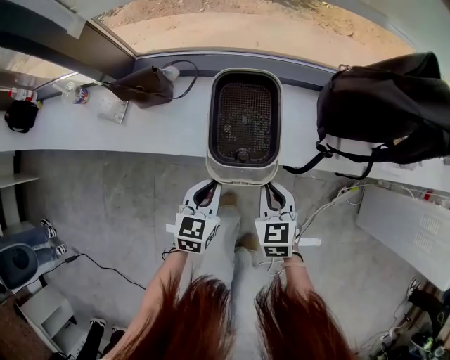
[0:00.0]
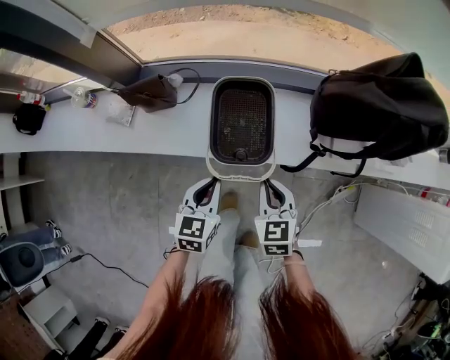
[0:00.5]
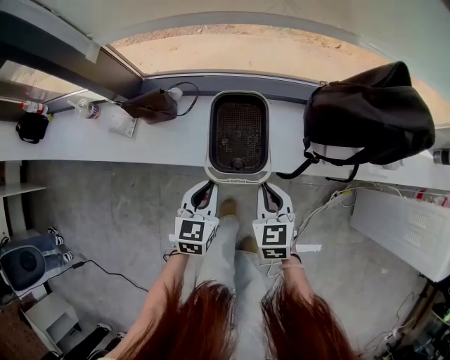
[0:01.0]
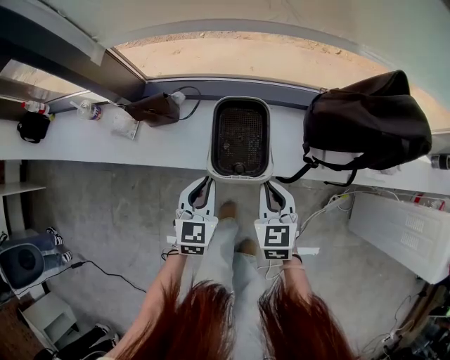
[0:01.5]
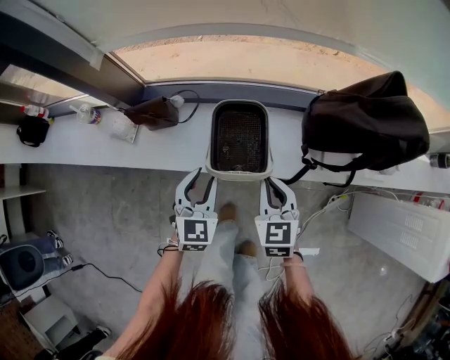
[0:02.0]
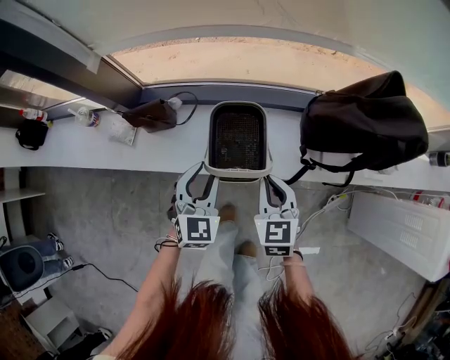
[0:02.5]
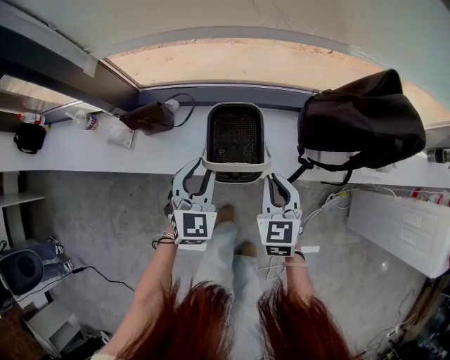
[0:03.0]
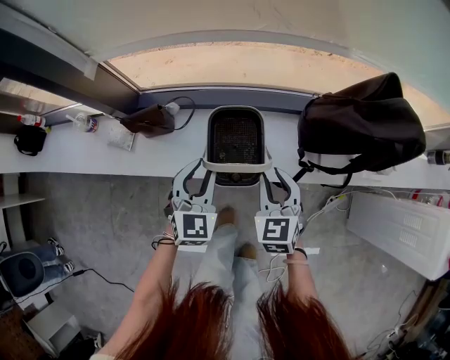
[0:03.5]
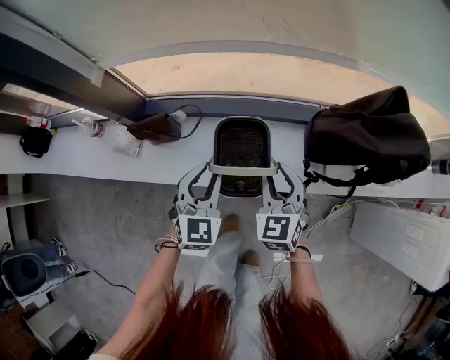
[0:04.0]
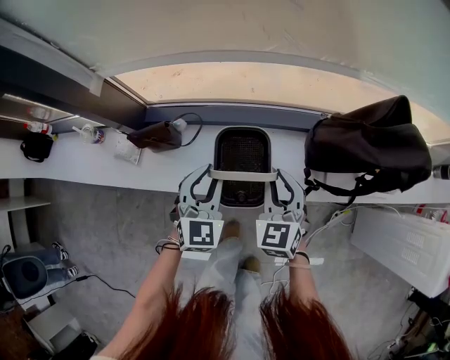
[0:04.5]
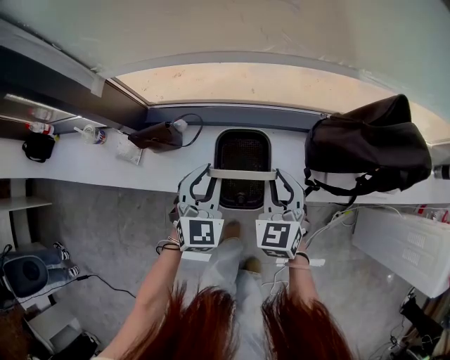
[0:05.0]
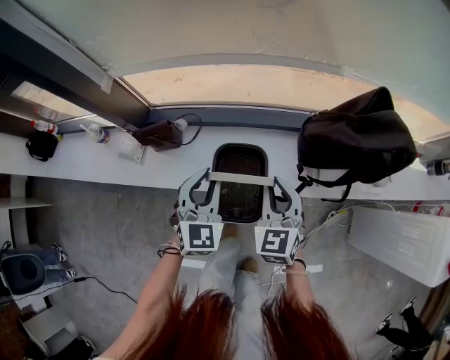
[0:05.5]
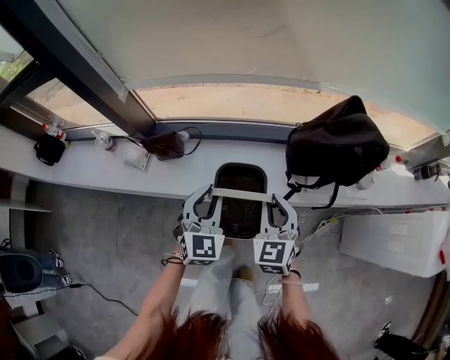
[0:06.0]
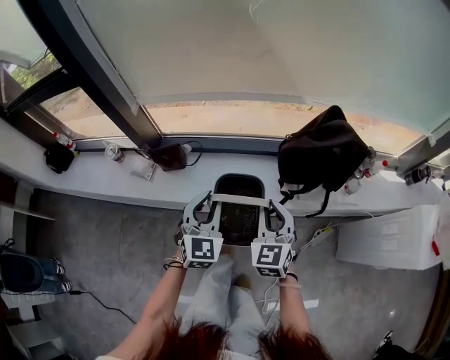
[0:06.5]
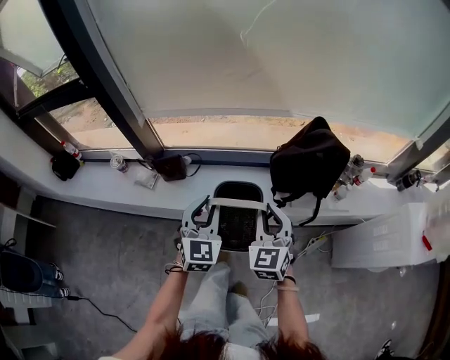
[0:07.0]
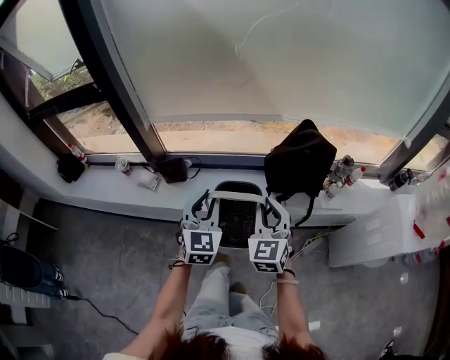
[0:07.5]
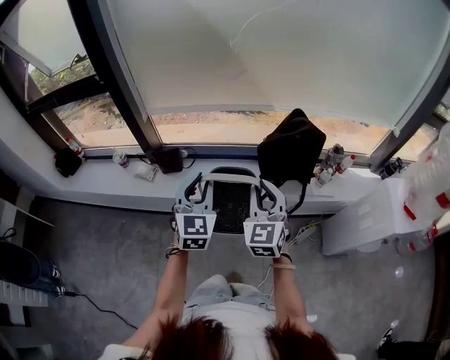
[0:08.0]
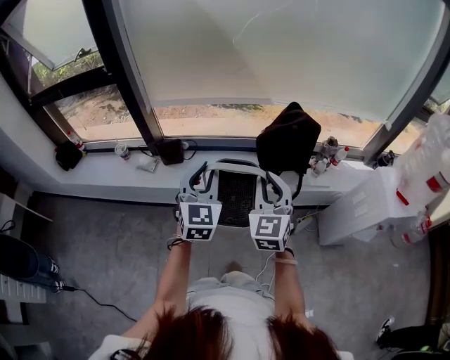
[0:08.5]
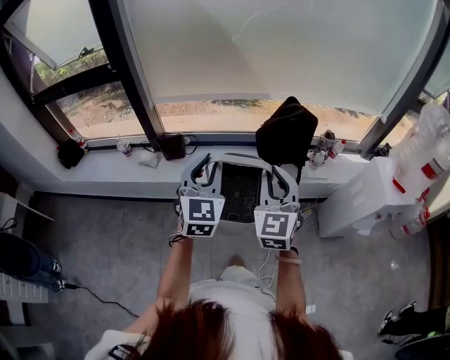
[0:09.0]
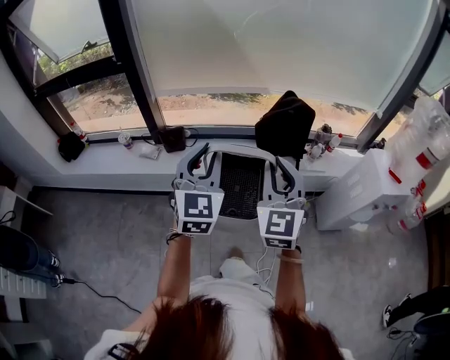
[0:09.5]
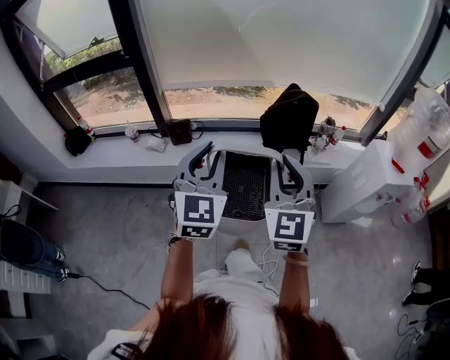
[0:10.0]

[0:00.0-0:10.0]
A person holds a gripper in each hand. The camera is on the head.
0:00.0 to 0:02.0: The two grippers go some 15 cm upward and forward. The left gripper turns by roughly 20 degrees, and opens.
0:02.0 to 0:04.0: Both grippers travel together forward, about 5 cm. The right gripper opens its fingers.
0:04.0 to 0:06.0: The left gripper moves upward and backward, about 15 cm. The right gripper heads backward and upward, covering approximately 15 cm.
0:06.0 to 0:08.0: The grippers both shift upward and backward by some 25 cm.
0:08.0 to 0:10.0: The grippers both shift backward and upward by roughly 25 cm.

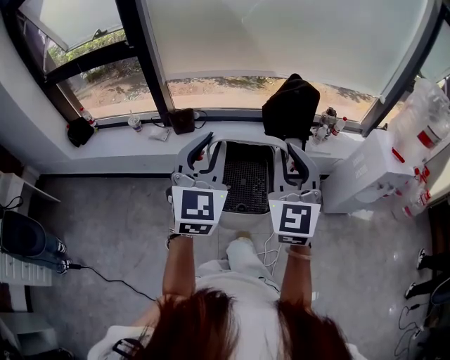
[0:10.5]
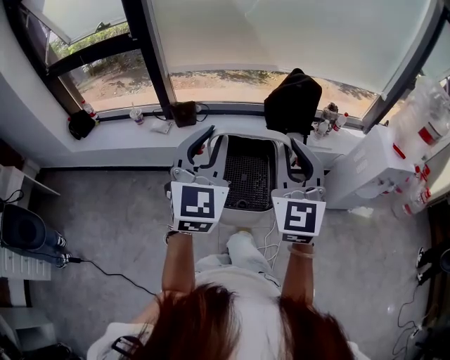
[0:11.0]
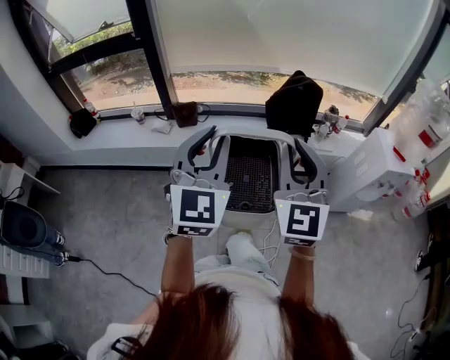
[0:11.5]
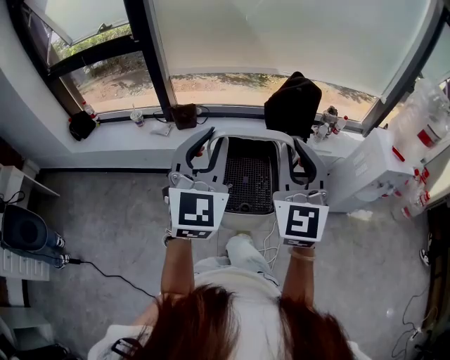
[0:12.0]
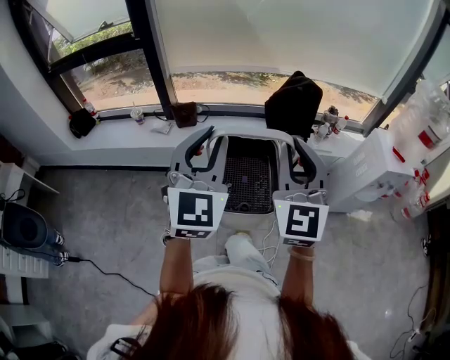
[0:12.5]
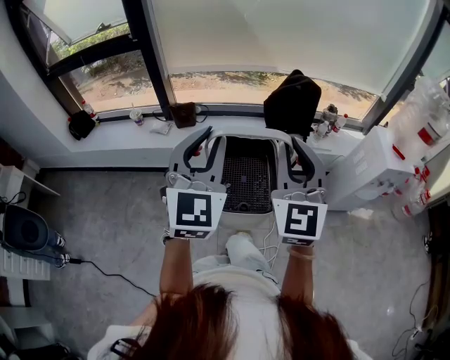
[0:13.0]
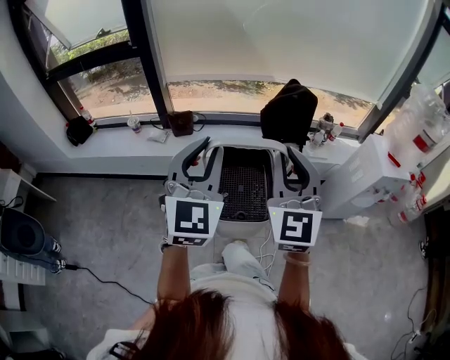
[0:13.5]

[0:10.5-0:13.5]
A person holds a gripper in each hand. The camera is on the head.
0:10.5 to 0:12.0: The grippers move only a little.
0:12.0 to 0:13.5: Both grippers stay put.

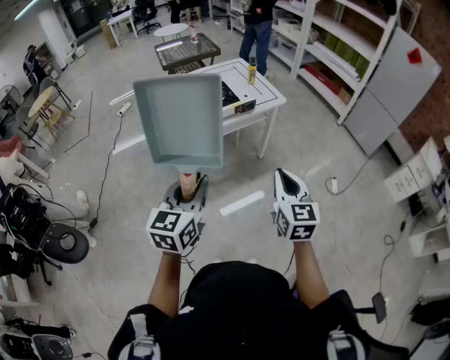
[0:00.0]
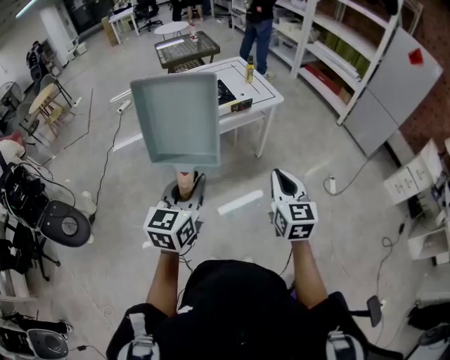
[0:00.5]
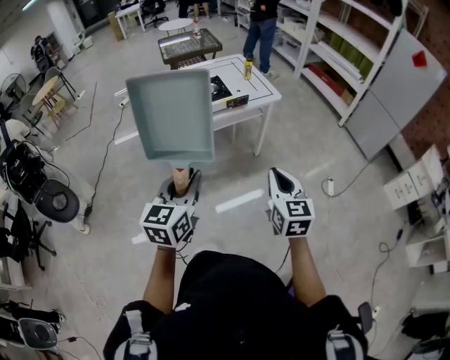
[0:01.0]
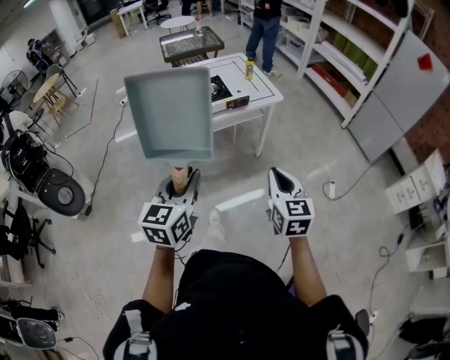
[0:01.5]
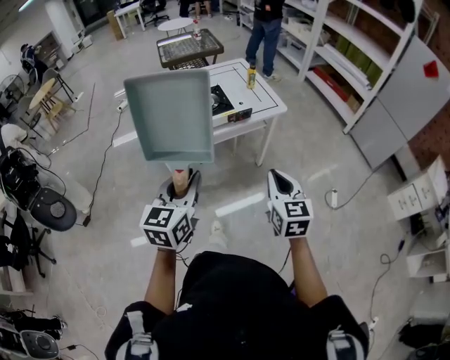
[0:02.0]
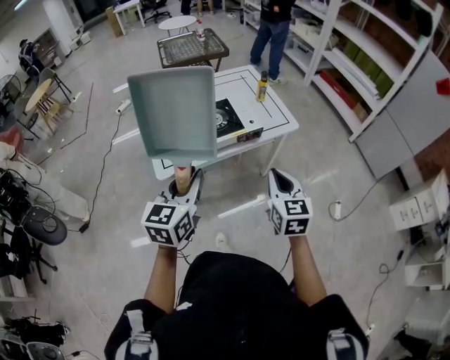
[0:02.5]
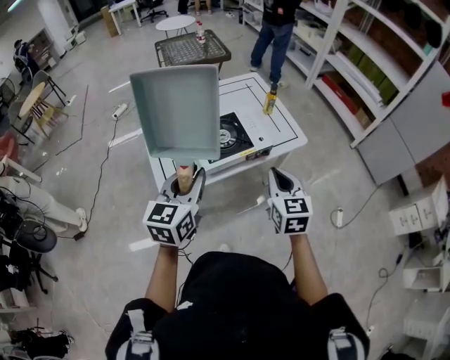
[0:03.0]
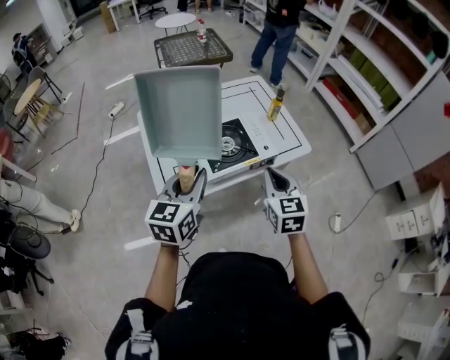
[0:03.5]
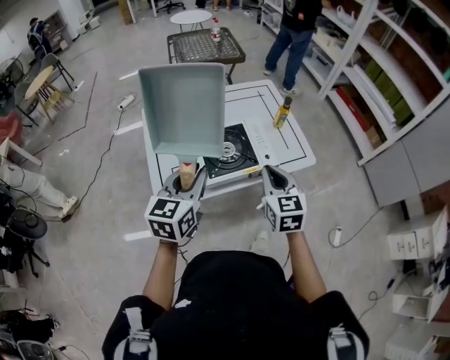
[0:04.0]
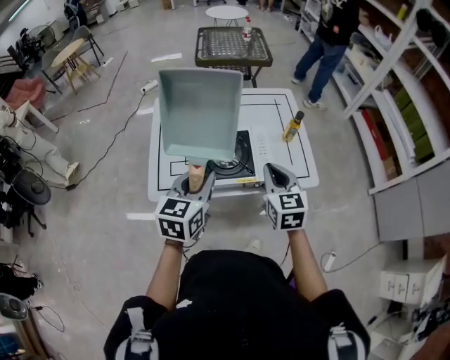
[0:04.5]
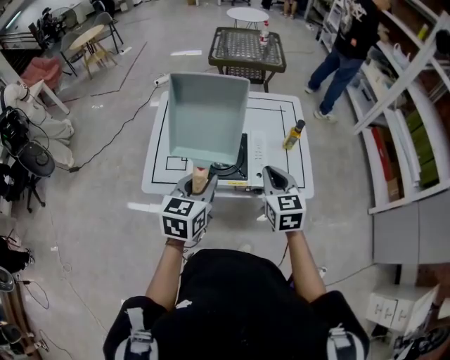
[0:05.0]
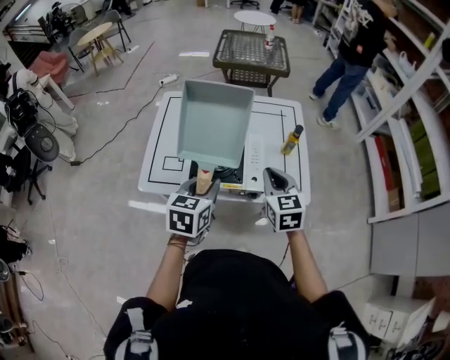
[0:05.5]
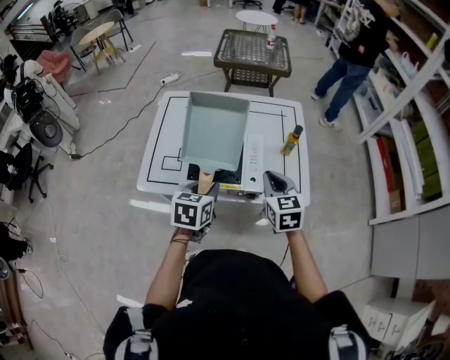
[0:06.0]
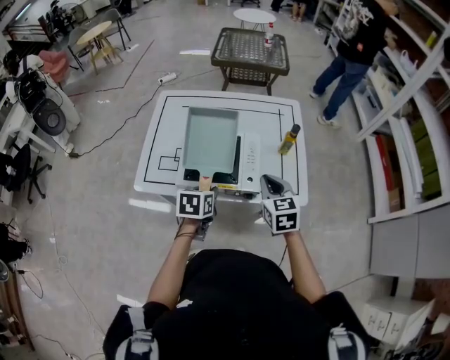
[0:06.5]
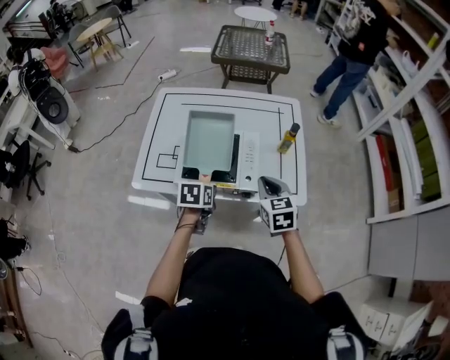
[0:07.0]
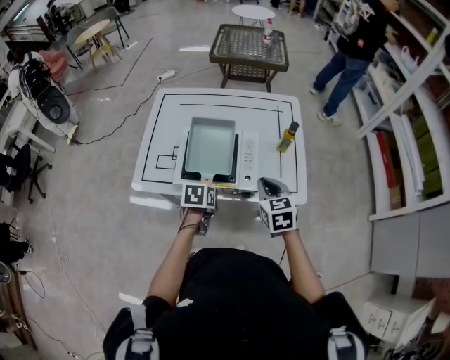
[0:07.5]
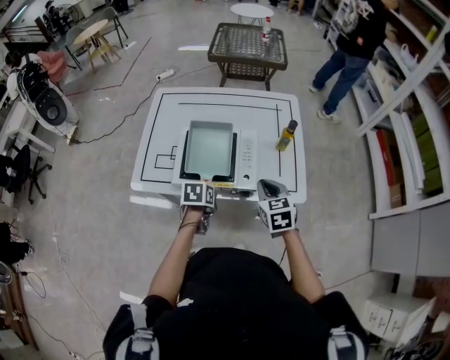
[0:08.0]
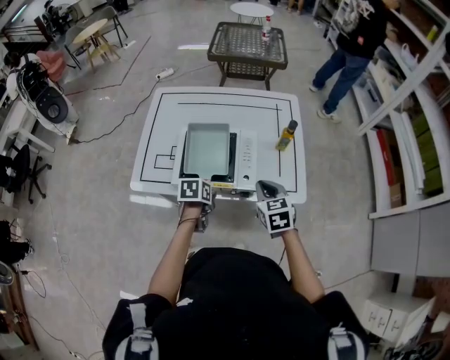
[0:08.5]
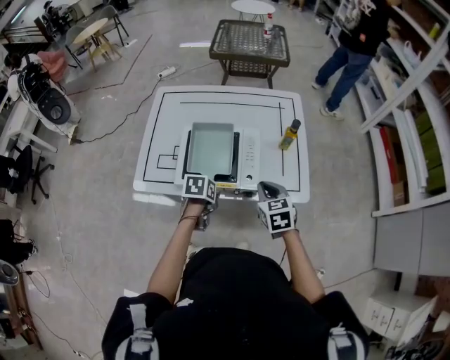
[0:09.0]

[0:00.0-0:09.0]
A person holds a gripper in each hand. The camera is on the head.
0:00.0 to 0:02.0: The two grippers go approximately 10 cm forward.
0:02.0 to 0:04.5: The grippers both shift forward by roughly 40 cm. The right gripper swivels about 20 degrees.
0:04.5 to 0:07.0: The left gripper heads downward, covering roughly 20 cm, and tilts its fingers about 30 degrees downward. Meanwhile the right gripper travels downward and to the right by roughly 10 cm.
0:07.0 to 0:09.0: The grippers stay close to where they were, moving slightly.

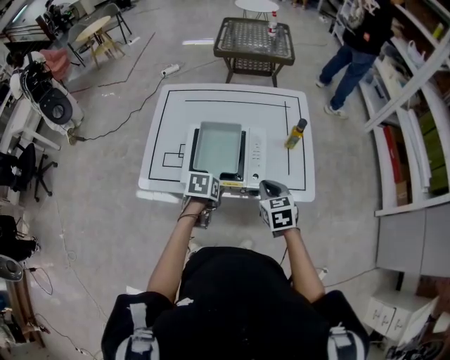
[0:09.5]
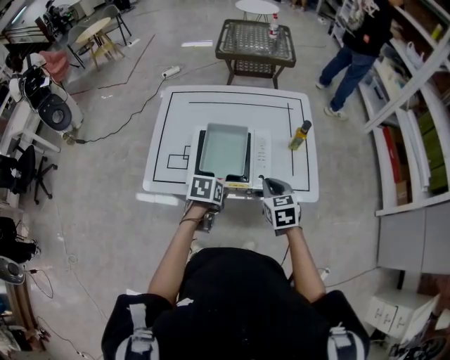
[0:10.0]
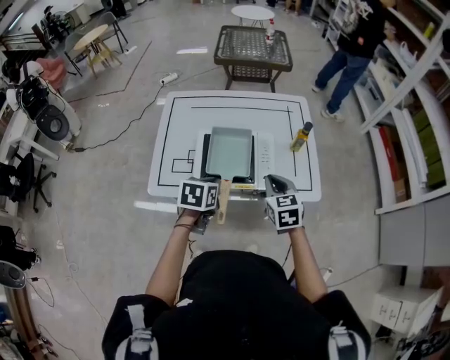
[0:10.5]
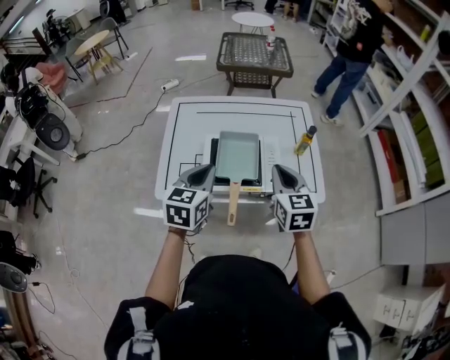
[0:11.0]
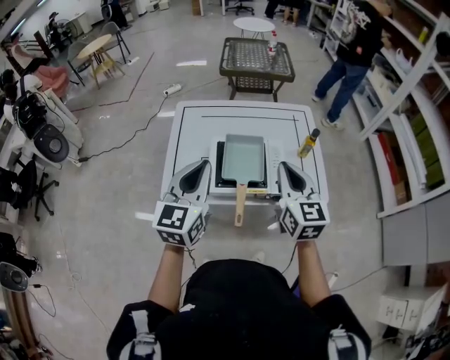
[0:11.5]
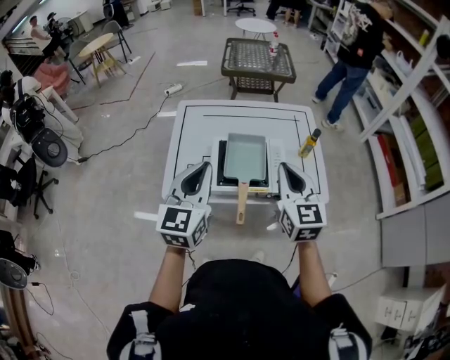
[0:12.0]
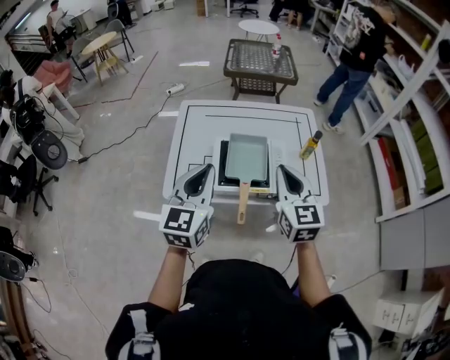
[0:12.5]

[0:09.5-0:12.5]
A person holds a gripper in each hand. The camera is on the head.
0:09.5 to 0:11.0: Both grippers travel together upward, roughly 20 cm. The left gripper angles its fingers upward, by roughly 40 degrees, and closes its fingers. Meanwhile the right gripper swivels roughly 20 degrees.
0:11.0 to 0:12.5: The grippers both shift upward by some 5 cm. The left gripper swivels about 20 degrees.

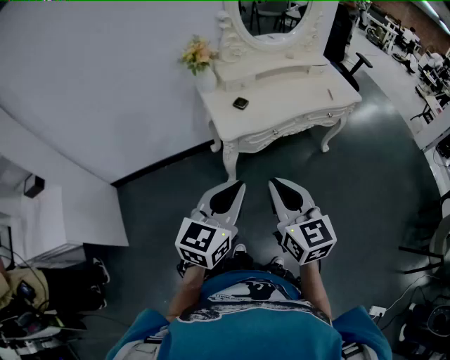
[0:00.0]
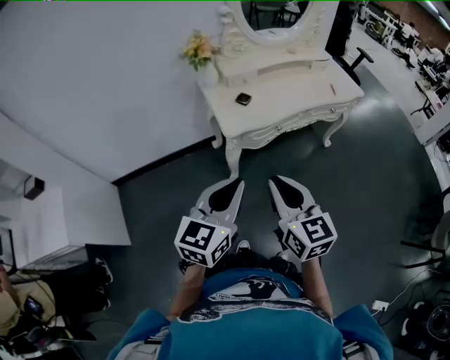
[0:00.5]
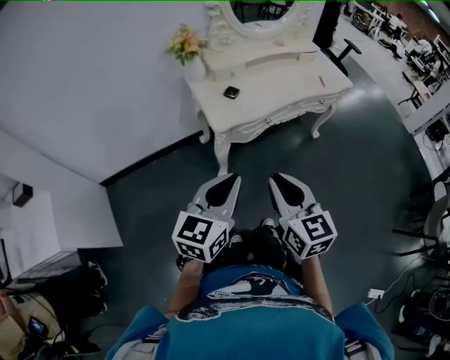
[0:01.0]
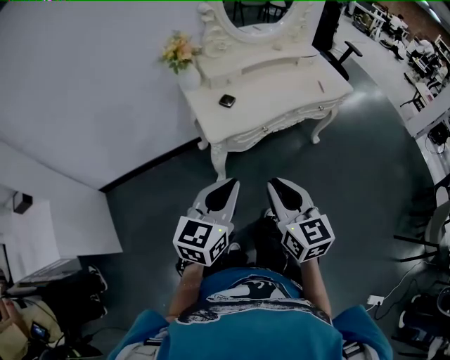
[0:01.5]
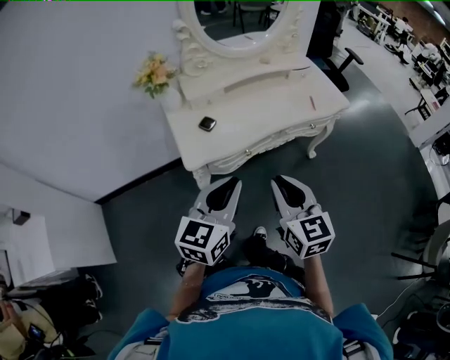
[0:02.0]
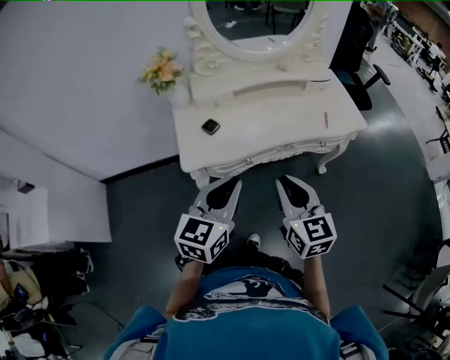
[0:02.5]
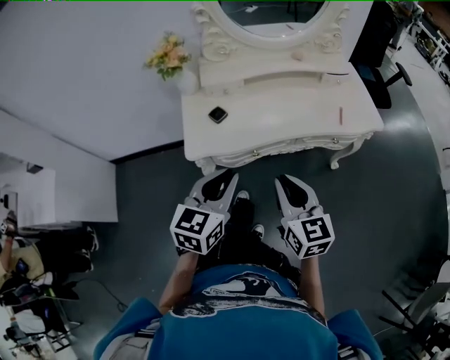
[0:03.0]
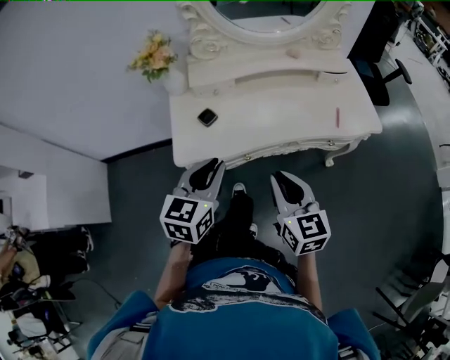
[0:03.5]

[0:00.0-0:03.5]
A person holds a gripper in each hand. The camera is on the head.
0:00.0 to 0:02.0: The two grippers go approximately 20 cm forward and to the right.
0:02.0 to 0:03.5: The left gripper moves forward, roughly 15 cm, and changes its angle by approximately 20 degrees. The right gripper goes roughly 15 cm forward, to the right and downward.
